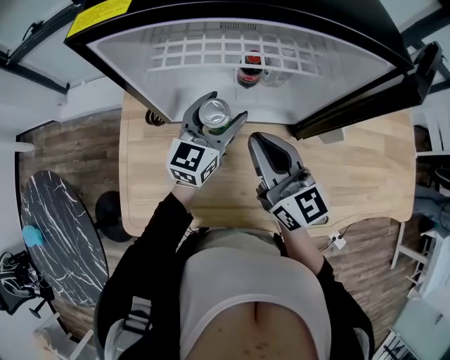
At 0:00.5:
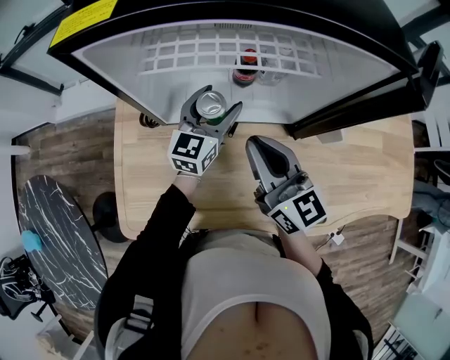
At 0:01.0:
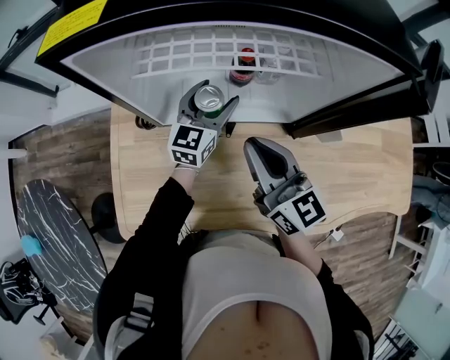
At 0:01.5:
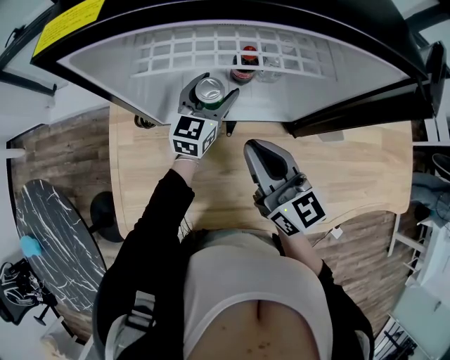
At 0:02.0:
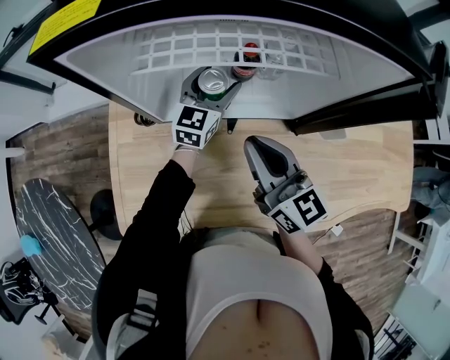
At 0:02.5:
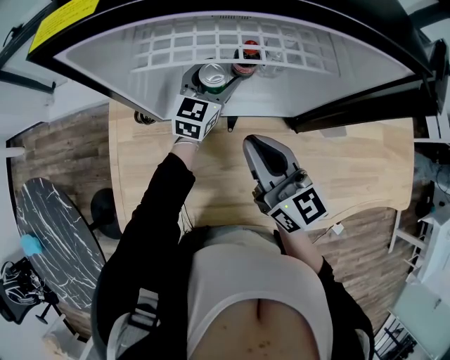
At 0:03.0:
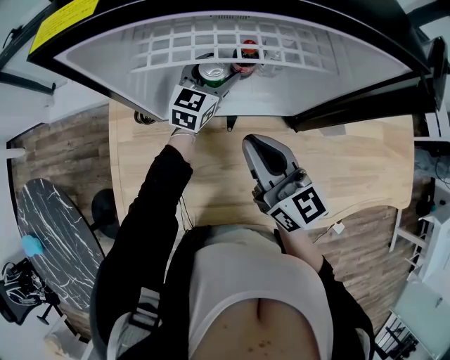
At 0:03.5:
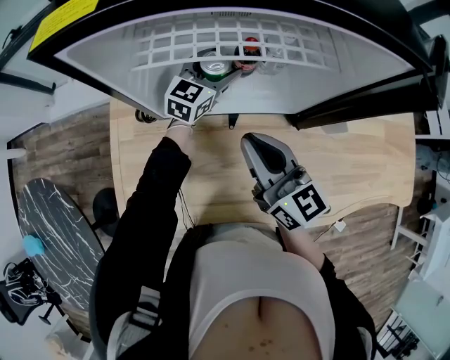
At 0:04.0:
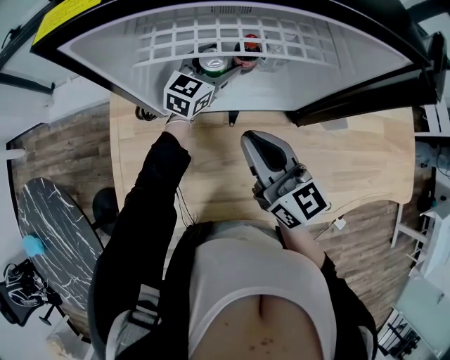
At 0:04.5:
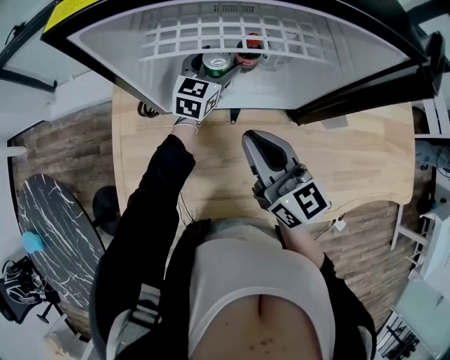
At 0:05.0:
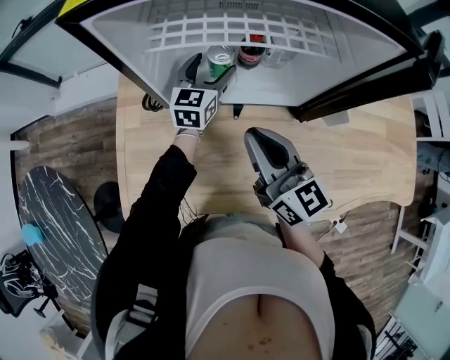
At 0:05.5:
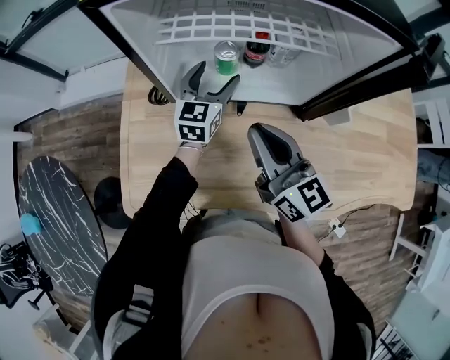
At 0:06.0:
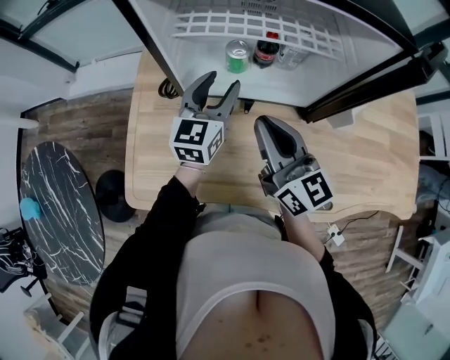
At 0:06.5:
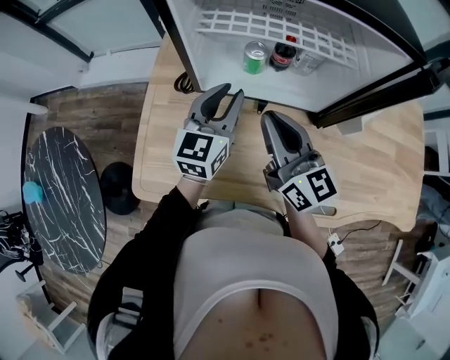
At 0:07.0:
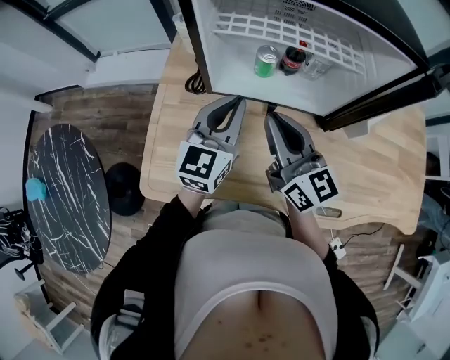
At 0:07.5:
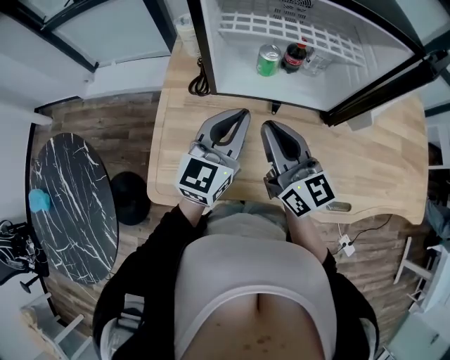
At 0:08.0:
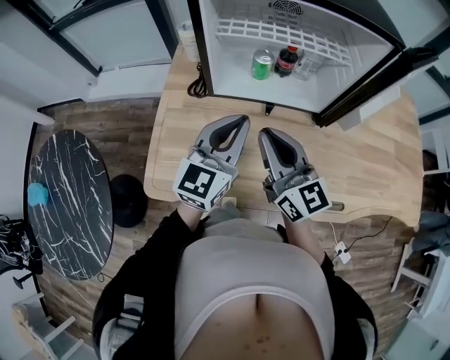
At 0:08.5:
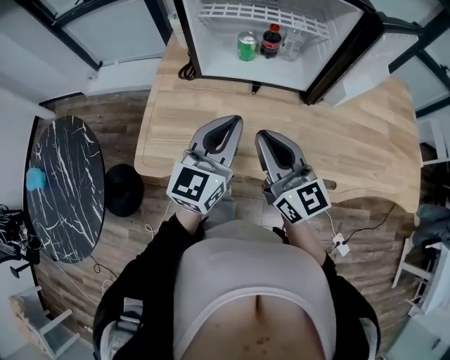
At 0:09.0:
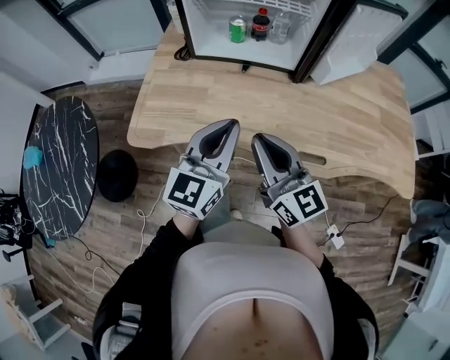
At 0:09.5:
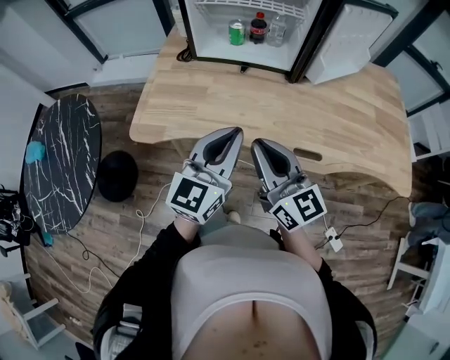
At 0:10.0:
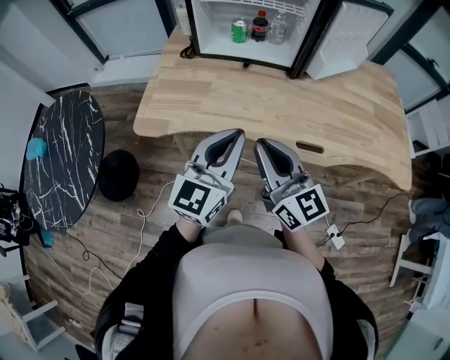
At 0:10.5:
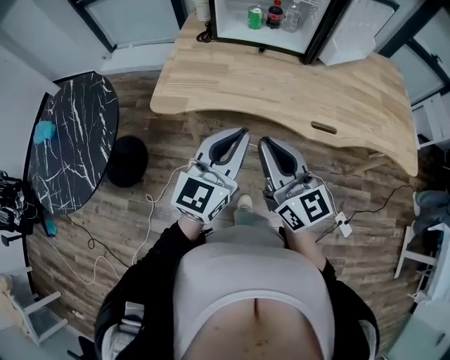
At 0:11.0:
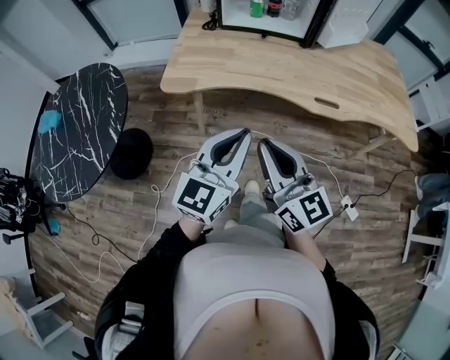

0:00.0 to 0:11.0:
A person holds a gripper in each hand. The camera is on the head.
0:00.0 to 0:02.0: The left gripper travels forward and downward by roughly 10 cm.
0:02.0 to 0:03.5: The grippers move only a little.
0:03.5 to 0:05.5: The left gripper shifts some 10 cm backward and to the left, and turns by roughly 20 degrees.
0:05.5 to 0:07.5: The left gripper travels backward and upward by about 20 cm, and closes its fingers; the right gripper goes about 5 cm to the left.
0:07.5 to 0:09.0: Both grippers travel together backward, approximately 25 cm.
0:09.0 to 0:11.0: The grippers both shift backward by approximately 25 cm.

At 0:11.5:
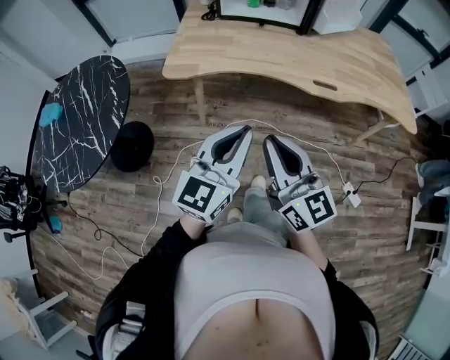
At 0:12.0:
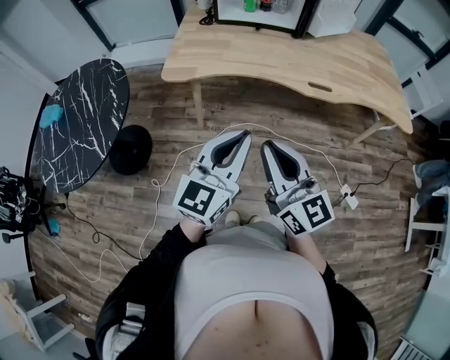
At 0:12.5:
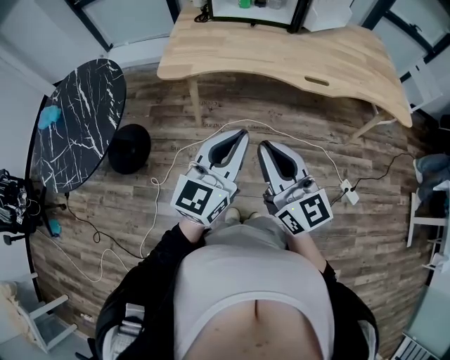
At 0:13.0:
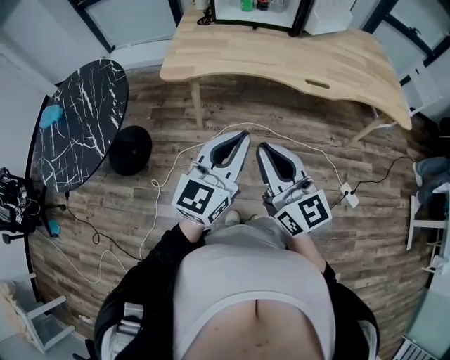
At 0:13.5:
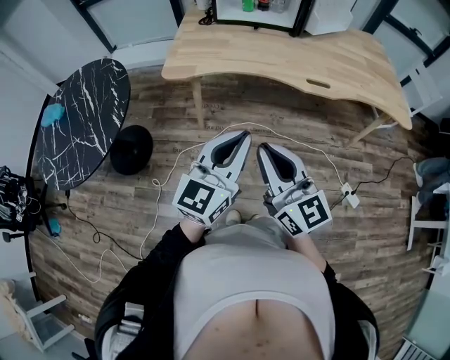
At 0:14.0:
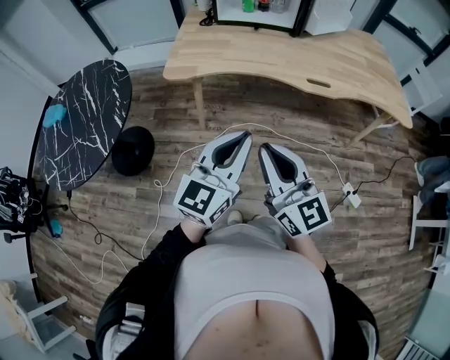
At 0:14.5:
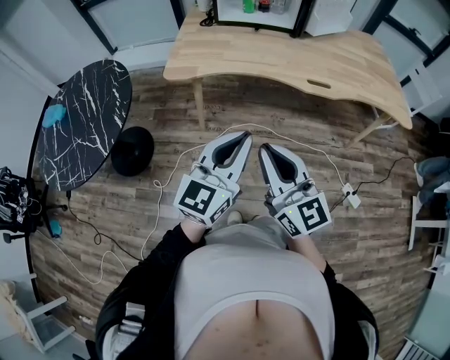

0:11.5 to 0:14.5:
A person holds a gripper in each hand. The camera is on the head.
0:11.5 to 0:14.5: The grippers stay close to where they were, moving slightly.

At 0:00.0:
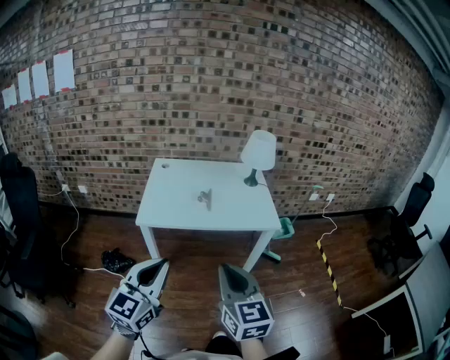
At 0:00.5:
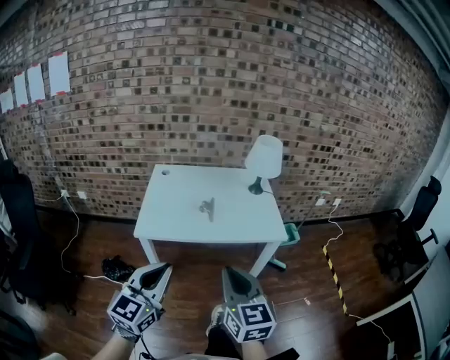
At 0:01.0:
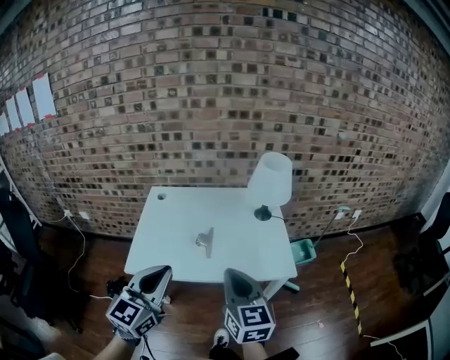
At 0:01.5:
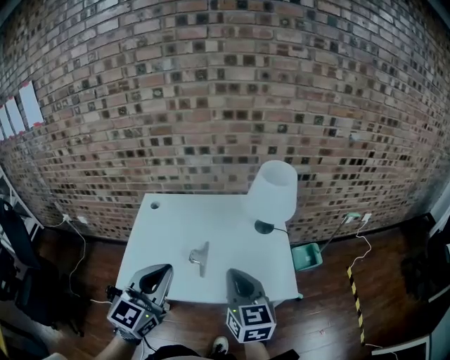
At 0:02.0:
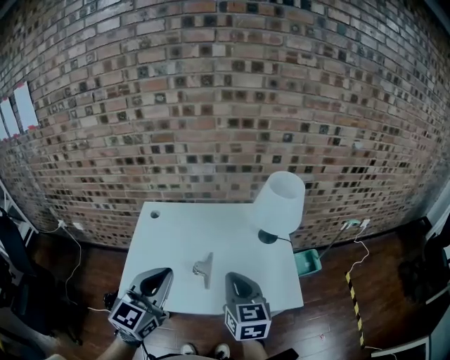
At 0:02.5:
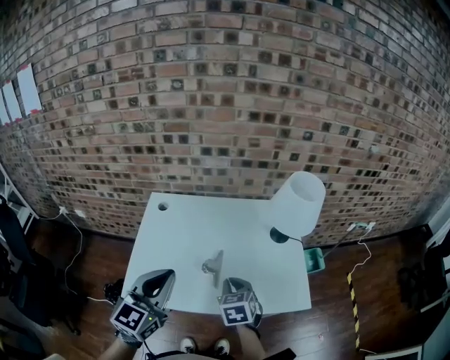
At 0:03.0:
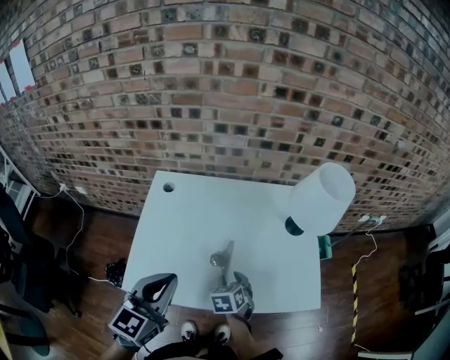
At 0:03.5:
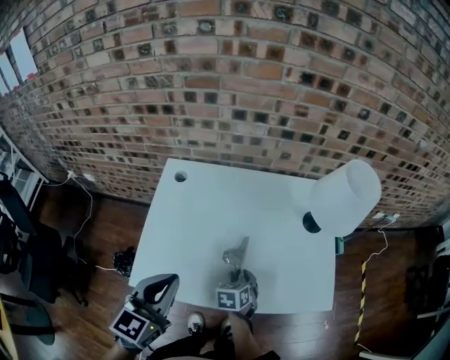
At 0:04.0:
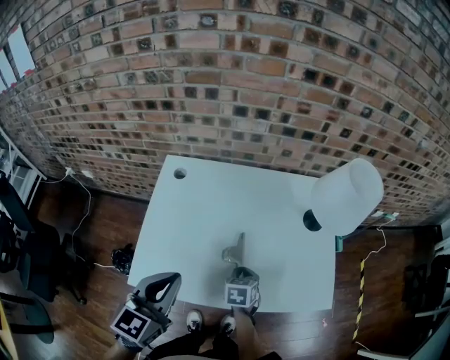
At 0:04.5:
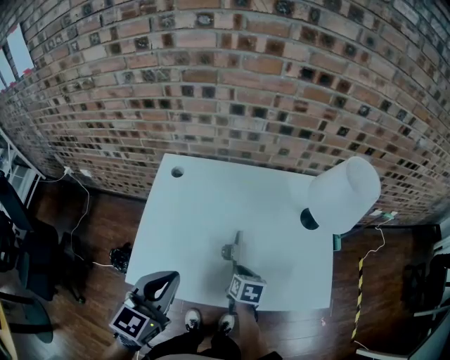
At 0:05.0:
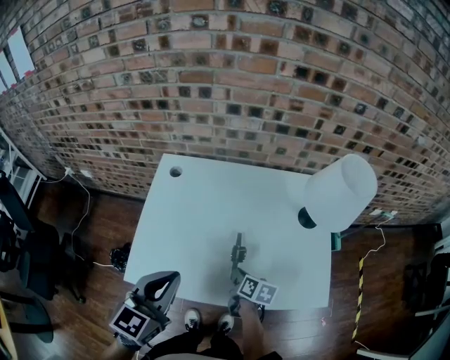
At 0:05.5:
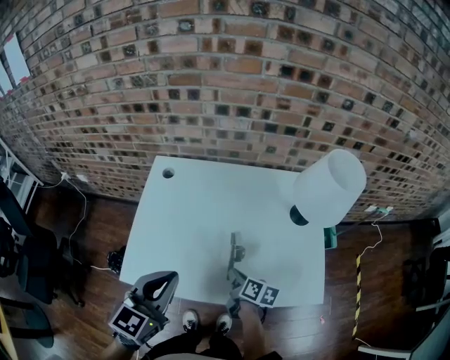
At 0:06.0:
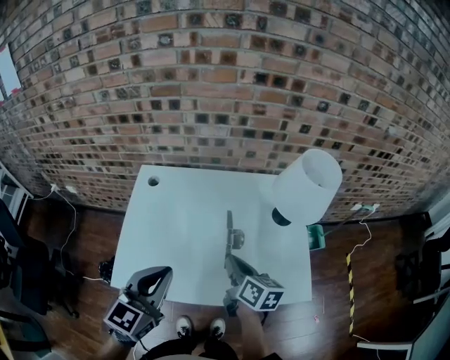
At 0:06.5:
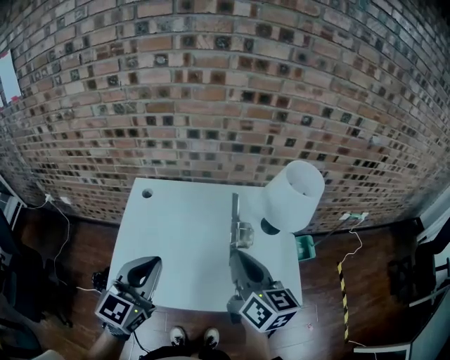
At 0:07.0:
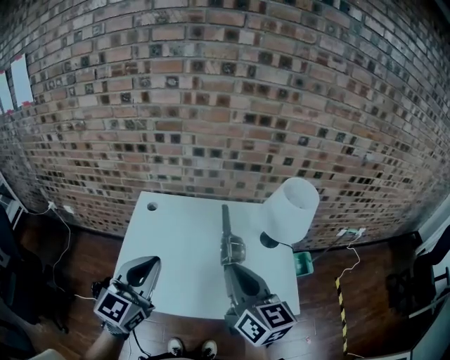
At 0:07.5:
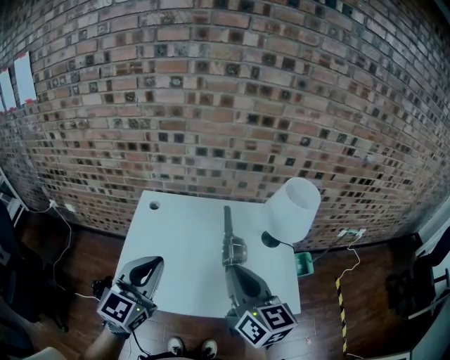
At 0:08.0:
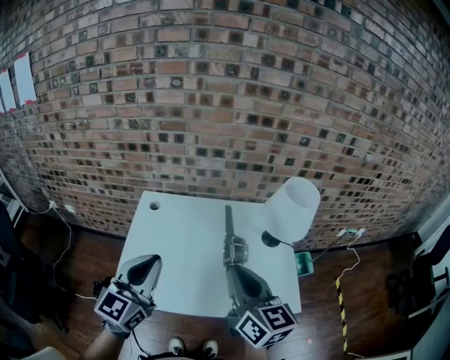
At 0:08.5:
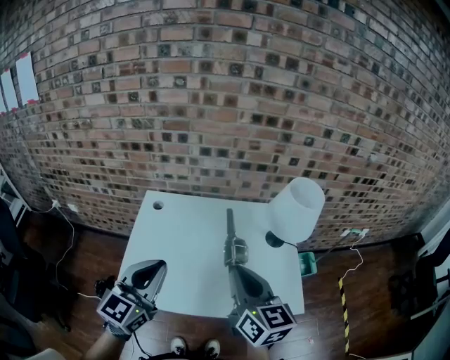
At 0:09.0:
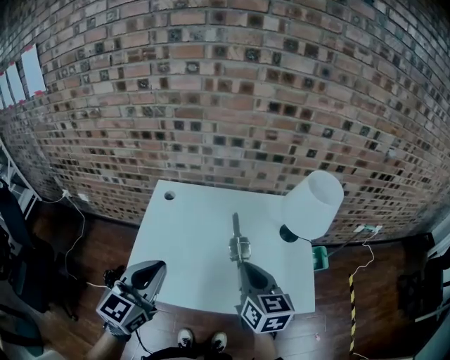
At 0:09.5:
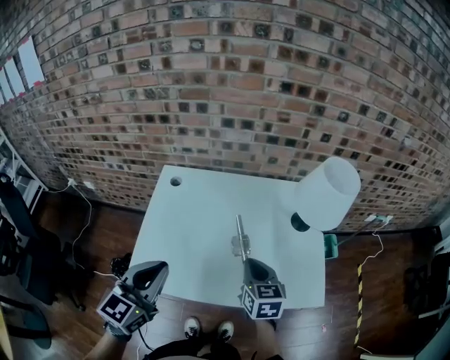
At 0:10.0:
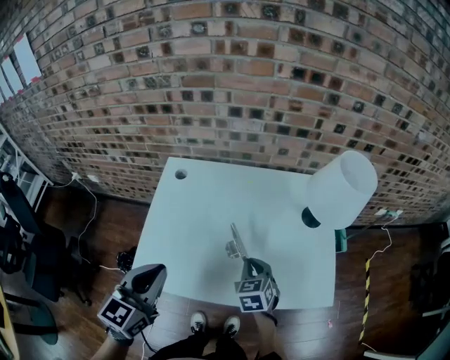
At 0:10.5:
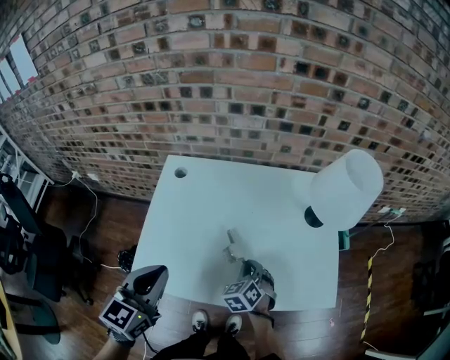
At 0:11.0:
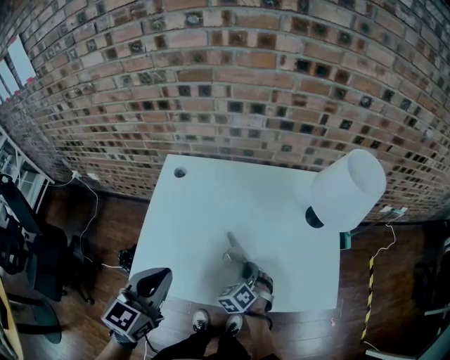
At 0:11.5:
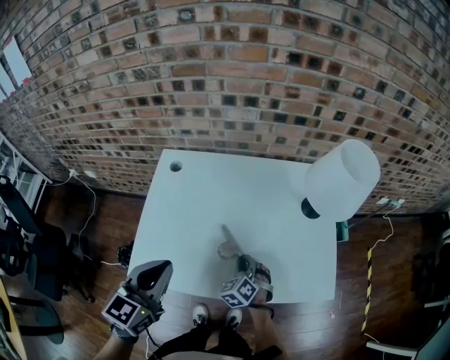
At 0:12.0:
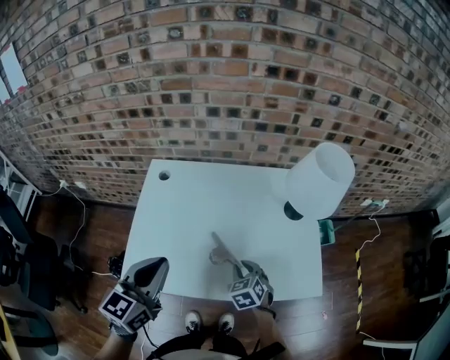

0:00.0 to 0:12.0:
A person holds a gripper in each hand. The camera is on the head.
0:00.0 to 0:02.0: The pair of grippers is taken forward, approximately 40 cm.
0:02.0 to 0:04.0: The right gripper is displaced downward by about 30 cm, points its fingers roughly 40 degrees further downward, and opens and closes again, while the left gripper goes roughly 15 cm downward and to the left.
0:04.0 to 0:06.0: The right gripper goes about 20 cm upward, and points its fingers approximately 30 degrees further upward. Meanwhile the left gripper is displaced to the right by about 5 cm.
0:06.0 to 0:08.0: The right gripper travels upward by about 20 cm, and turns by approximately 30 degrees. Meanwhile the left gripper travels upward by some 10 cm.
0:08.0 to 0:10.0: The left gripper travels downward by about 10 cm. Meanwhile the right gripper is displaced downward by some 30 cm, and angles its fingers downward, by some 40 degrees.
0:10.0 to 0:12.0: The right gripper moves some 5 cm.

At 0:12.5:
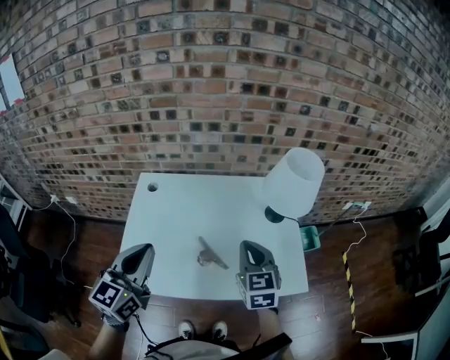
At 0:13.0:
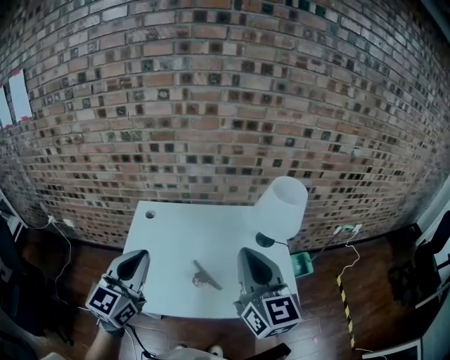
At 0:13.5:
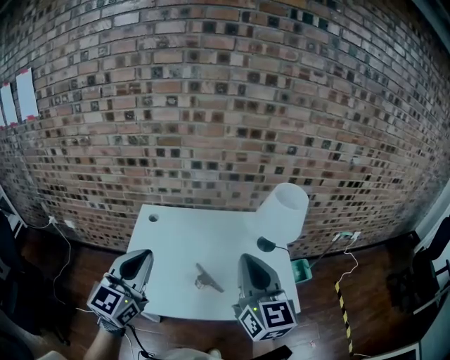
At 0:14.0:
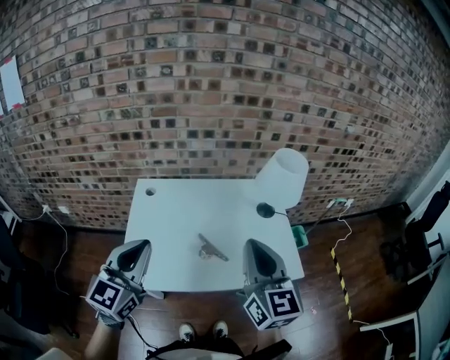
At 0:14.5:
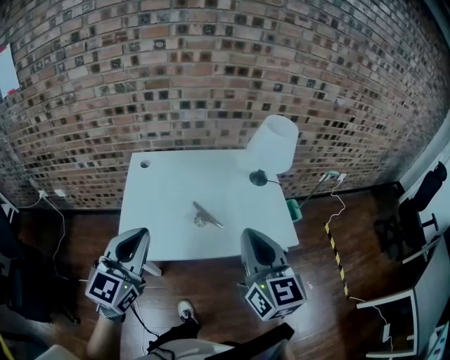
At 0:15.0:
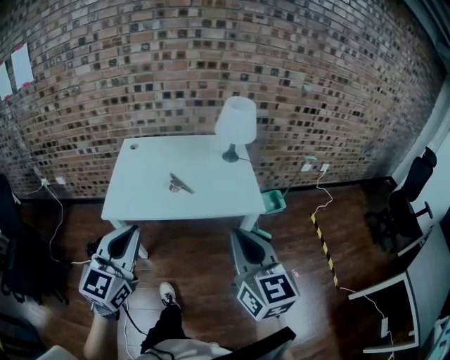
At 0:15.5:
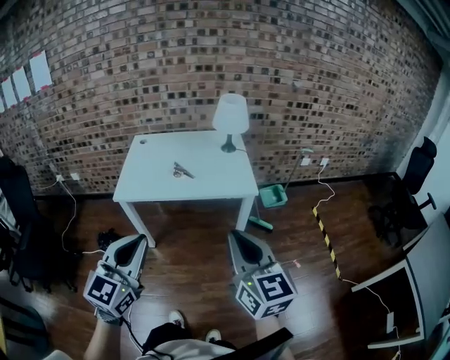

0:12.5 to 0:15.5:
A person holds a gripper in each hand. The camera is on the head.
0:12.5 to 0:14.0: The left gripper travels upward and backward by roughly 10 cm, while the right gripper travels upward and backward by roughly 20 cm, and changes its angle by roughly 30 degrees.
0:14.0 to 0:15.5: The two grippers travel together, backward and to the right, about 50 cm.
